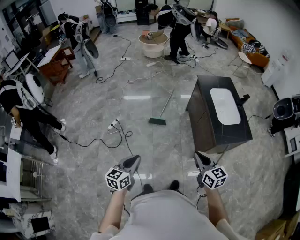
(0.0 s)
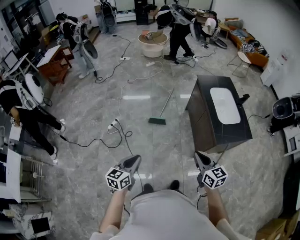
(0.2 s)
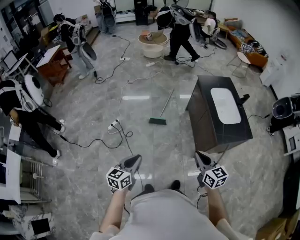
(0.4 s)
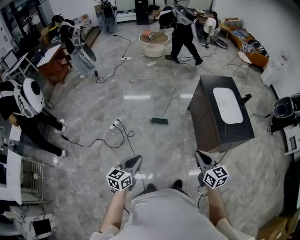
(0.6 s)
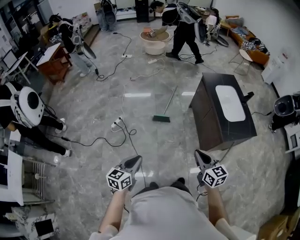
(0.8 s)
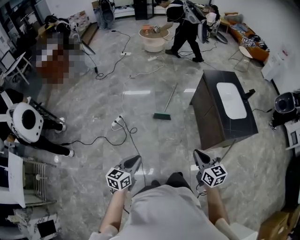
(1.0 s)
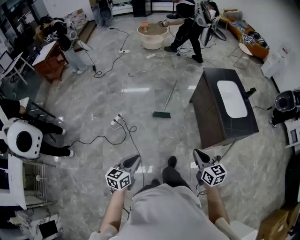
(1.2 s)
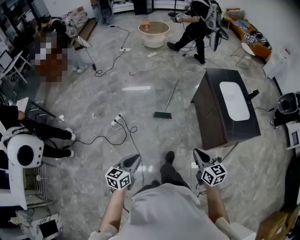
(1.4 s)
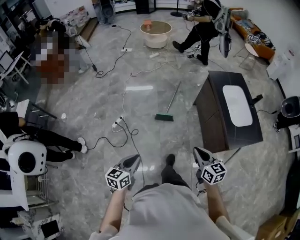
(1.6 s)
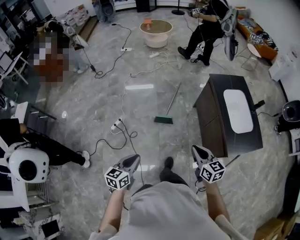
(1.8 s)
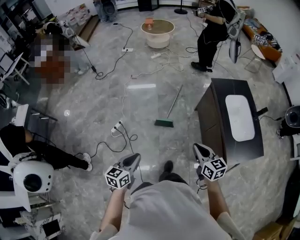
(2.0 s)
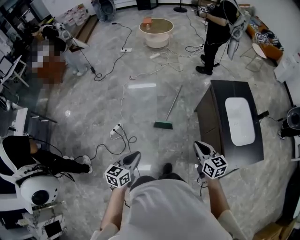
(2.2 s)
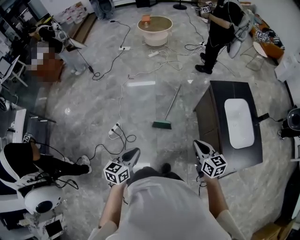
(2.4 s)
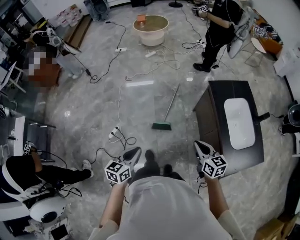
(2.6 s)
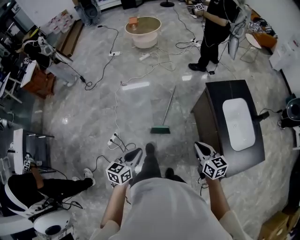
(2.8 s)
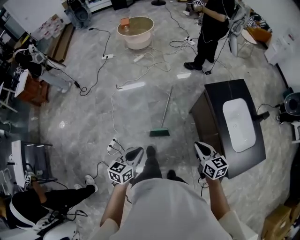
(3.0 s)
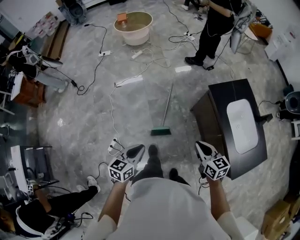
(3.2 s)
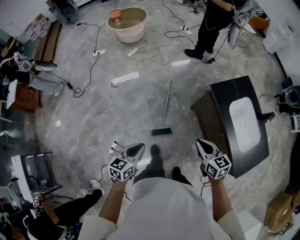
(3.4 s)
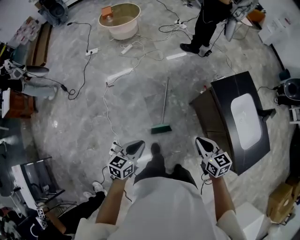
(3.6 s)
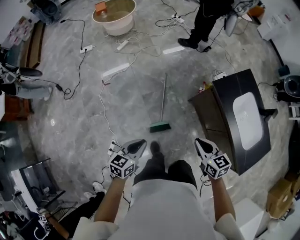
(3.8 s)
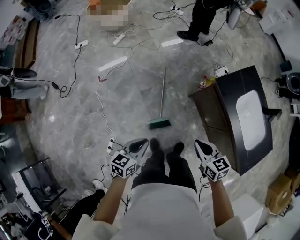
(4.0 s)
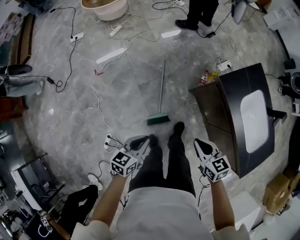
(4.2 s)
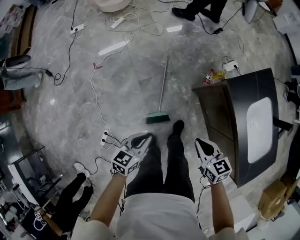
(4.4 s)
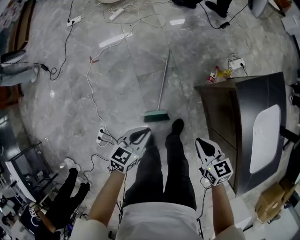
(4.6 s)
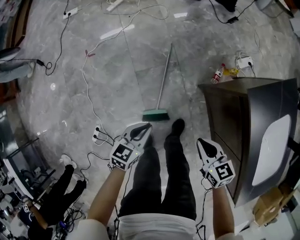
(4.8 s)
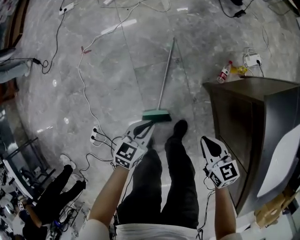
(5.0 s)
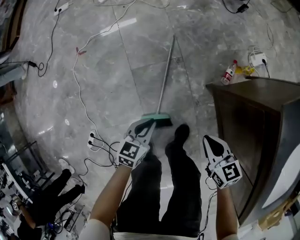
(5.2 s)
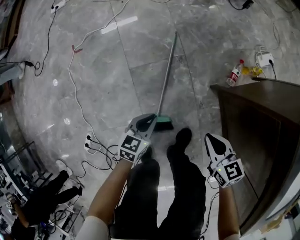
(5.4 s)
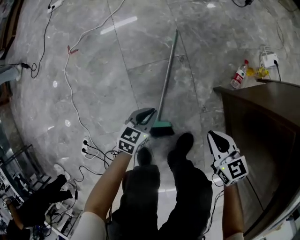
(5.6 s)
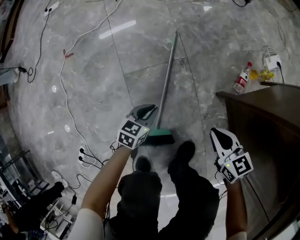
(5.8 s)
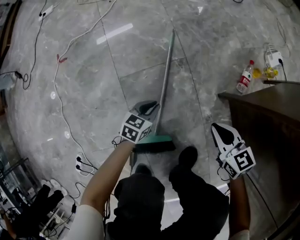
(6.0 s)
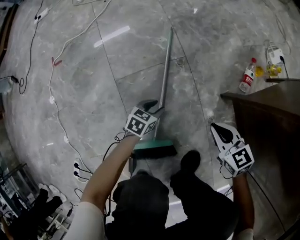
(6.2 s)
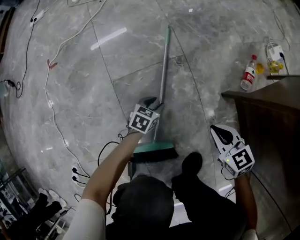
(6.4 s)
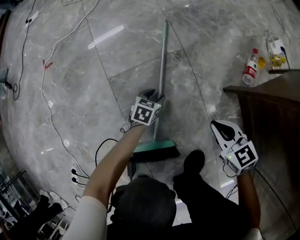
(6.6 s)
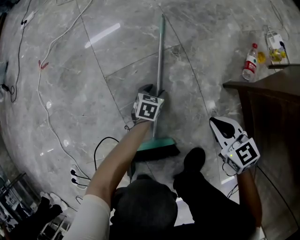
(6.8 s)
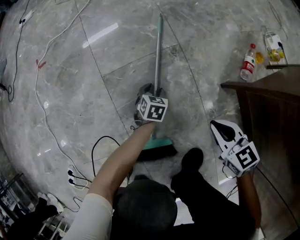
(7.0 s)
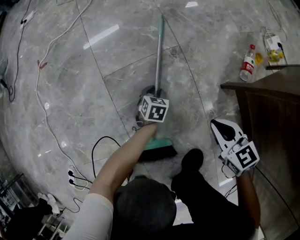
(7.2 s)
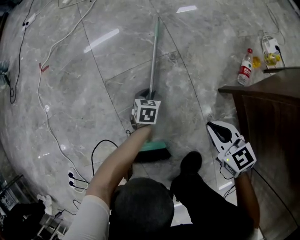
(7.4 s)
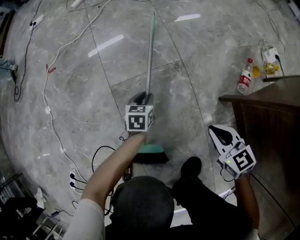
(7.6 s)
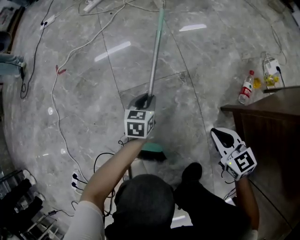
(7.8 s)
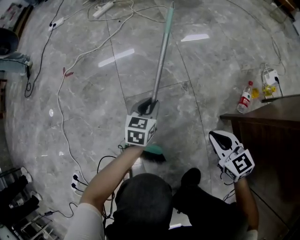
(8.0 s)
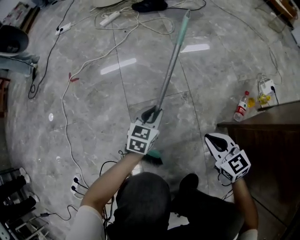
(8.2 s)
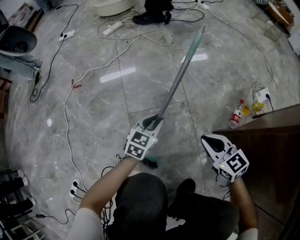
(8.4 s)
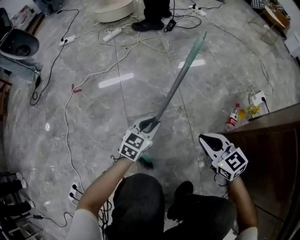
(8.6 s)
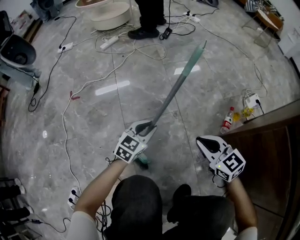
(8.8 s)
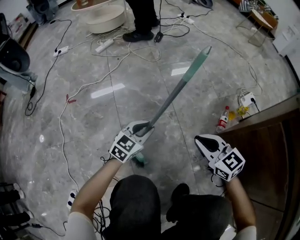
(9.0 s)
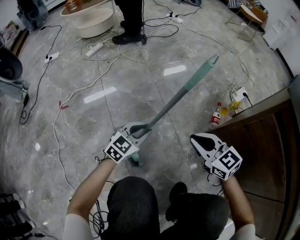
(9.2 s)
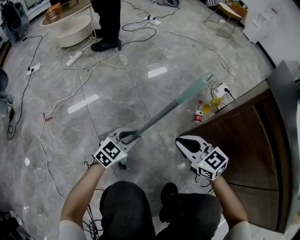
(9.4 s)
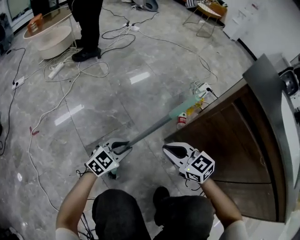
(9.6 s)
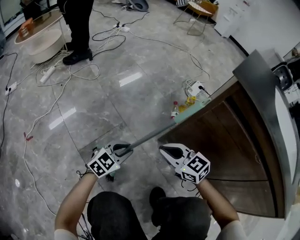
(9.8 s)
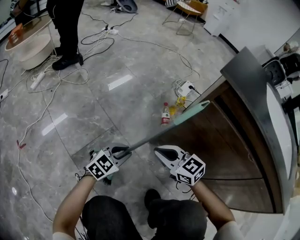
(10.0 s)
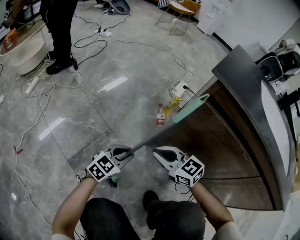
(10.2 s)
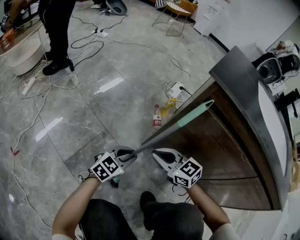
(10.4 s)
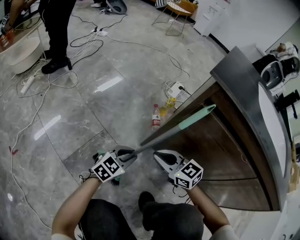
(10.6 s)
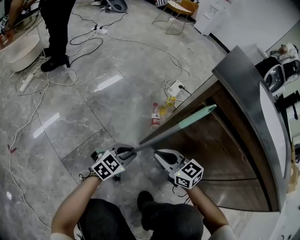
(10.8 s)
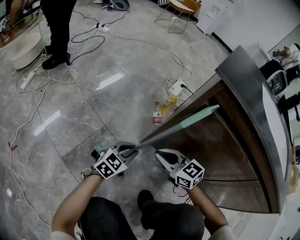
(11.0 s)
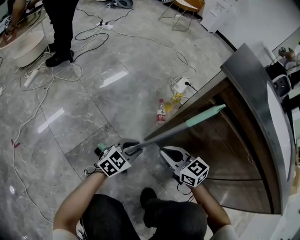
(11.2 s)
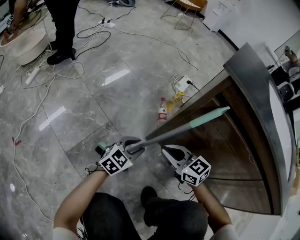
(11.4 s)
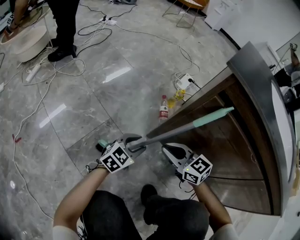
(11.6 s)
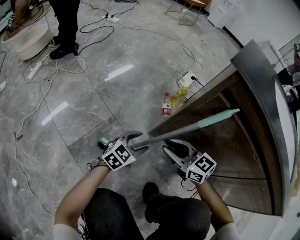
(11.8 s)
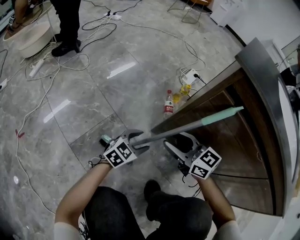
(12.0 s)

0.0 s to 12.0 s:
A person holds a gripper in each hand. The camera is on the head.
0.0 to 1.6 s: The left gripper goes some 15 cm to the left and forward. The right gripper moves forward, to the left and downward, approximately 15 cm.
1.6 to 3.0 s: Both grippers travel together forward, approximately 40 cm.
3.0 to 4.4 s: Both grippers travel together forward and downward, some 35 cm.
4.4 to 6.0 s: The two grippers go roughly 60 cm downward.
6.0 to 7.6 s: The left gripper heads downward and forward, covering approximately 10 cm, changes its angle by roughly 20 degrees, and opens, then closes again. The right gripper heads downward, covering some 5 cm.
7.6 to 9.0 s: Both grippers travel together upward, approximately 25 cm. The left gripper turns by approximately 40 degrees.
9.0 to 10.4 s: The right gripper shifts by roughly 15 cm, and rotates roughly 20 degrees. The left gripper changes place by approximately 25 cm, and swivels about 40 degrees.
10.4 to 12.0 s: The right gripper opens up, while the left gripper opens its fingers.

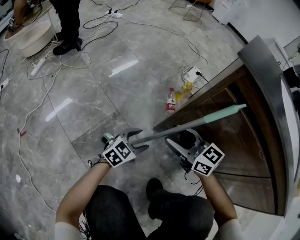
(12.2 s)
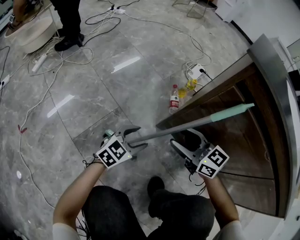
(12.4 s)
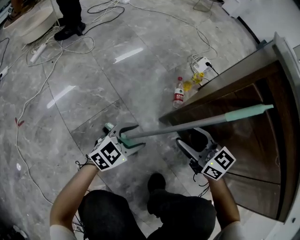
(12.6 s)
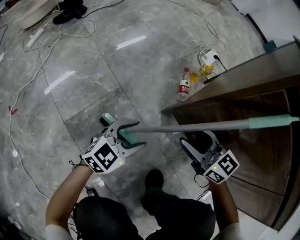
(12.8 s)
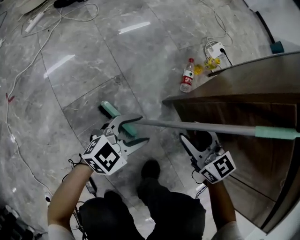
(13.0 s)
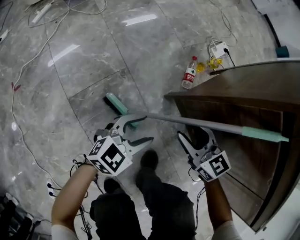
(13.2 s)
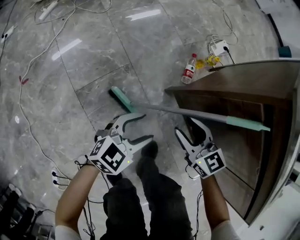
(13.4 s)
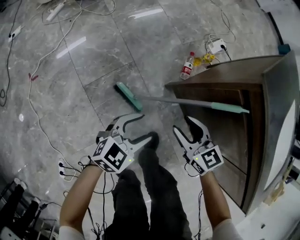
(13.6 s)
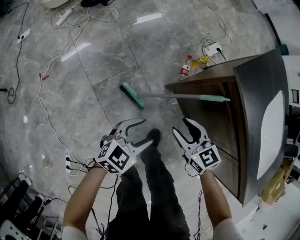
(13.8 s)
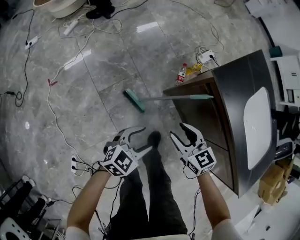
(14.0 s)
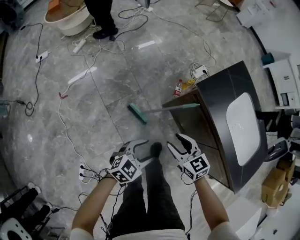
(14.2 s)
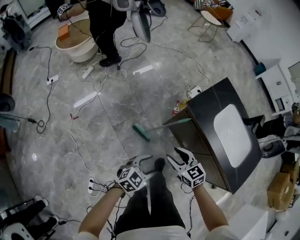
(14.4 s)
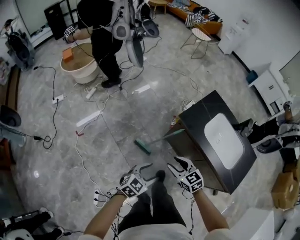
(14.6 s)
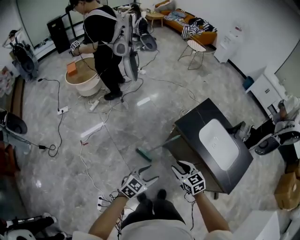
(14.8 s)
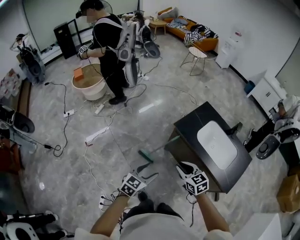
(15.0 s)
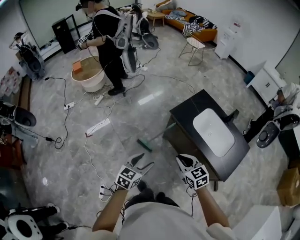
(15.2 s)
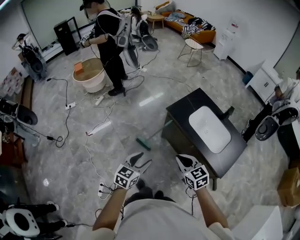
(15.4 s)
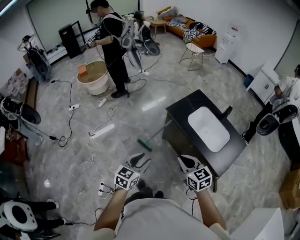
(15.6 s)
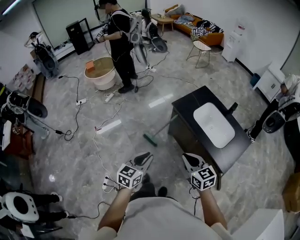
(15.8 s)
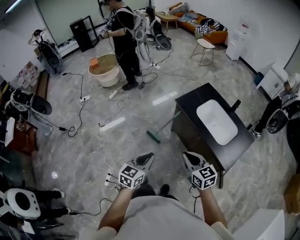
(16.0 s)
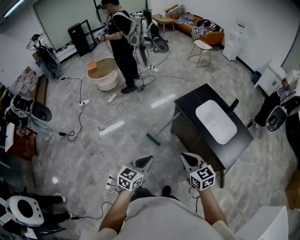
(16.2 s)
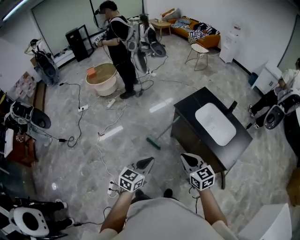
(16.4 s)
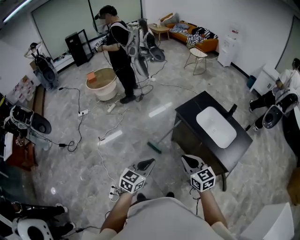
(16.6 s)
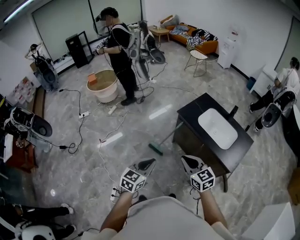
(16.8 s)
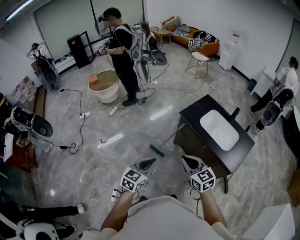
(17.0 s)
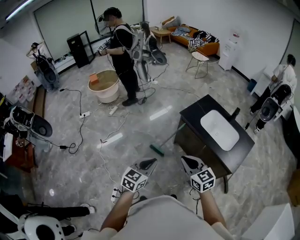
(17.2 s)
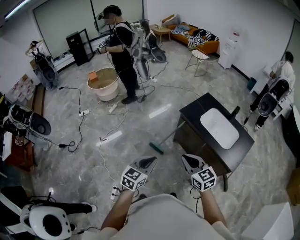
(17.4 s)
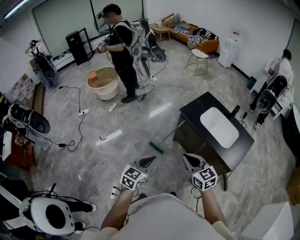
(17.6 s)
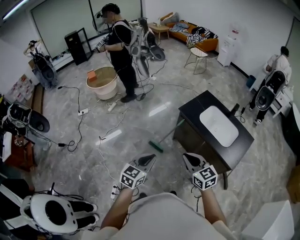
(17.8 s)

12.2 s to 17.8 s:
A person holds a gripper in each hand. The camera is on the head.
12.2 to 13.6 s: The left gripper goes some 20 cm upward and backward. Meanwhile the right gripper travels backward and upward by some 10 cm.
13.6 to 15.0 s: The right gripper travels upward and backward by roughly 70 cm, and closes, while the left gripper shifts some 60 cm upward.
15.0 to 16.4 s: Both grippers travel together backward and upward, about 25 cm. The left gripper closes up.
16.4 to 17.8 s: Both grippers move to the left, approximately 5 cm.

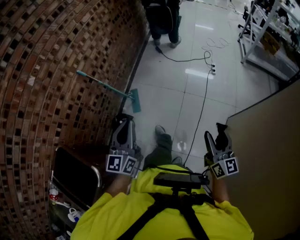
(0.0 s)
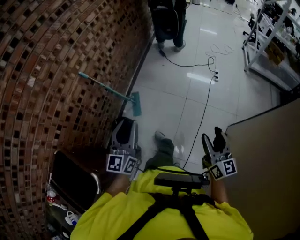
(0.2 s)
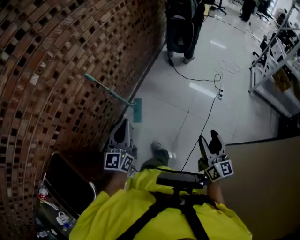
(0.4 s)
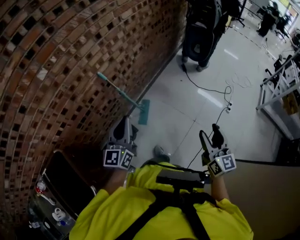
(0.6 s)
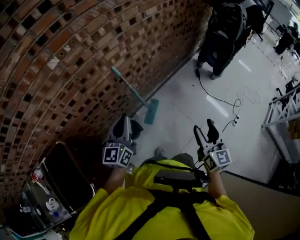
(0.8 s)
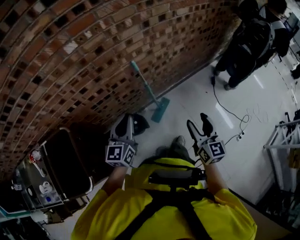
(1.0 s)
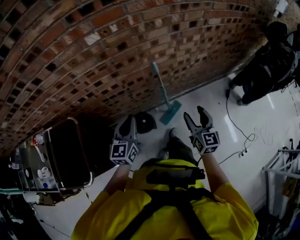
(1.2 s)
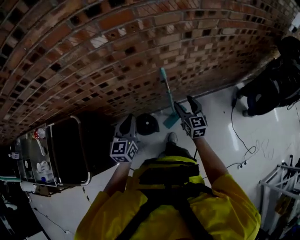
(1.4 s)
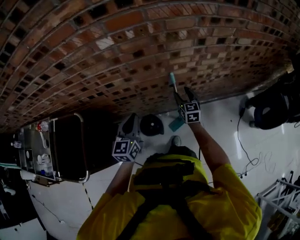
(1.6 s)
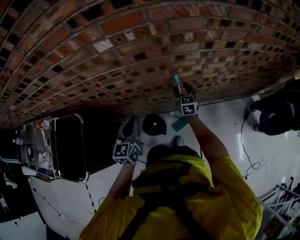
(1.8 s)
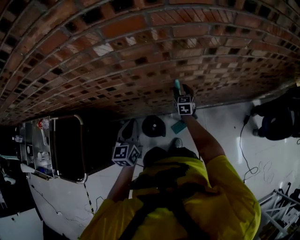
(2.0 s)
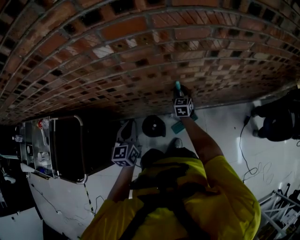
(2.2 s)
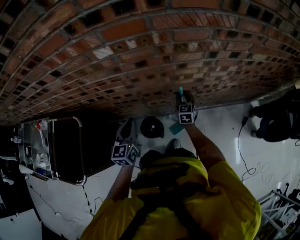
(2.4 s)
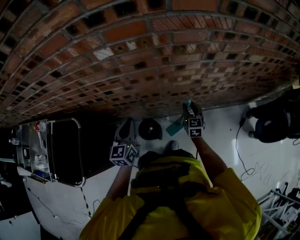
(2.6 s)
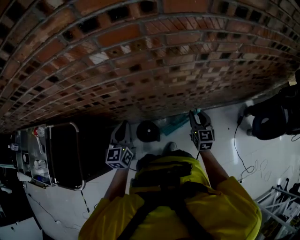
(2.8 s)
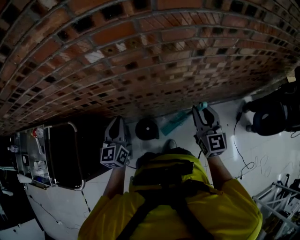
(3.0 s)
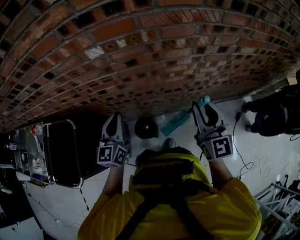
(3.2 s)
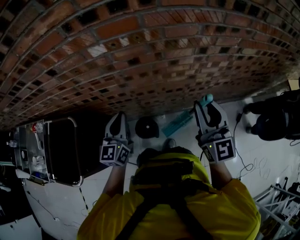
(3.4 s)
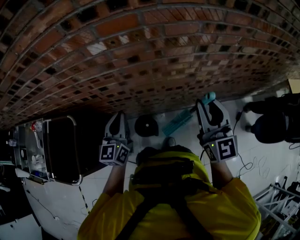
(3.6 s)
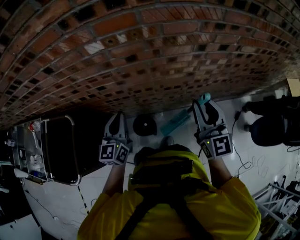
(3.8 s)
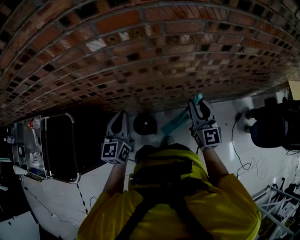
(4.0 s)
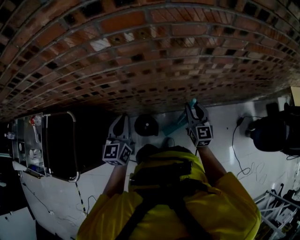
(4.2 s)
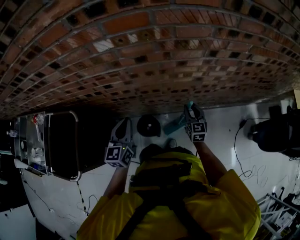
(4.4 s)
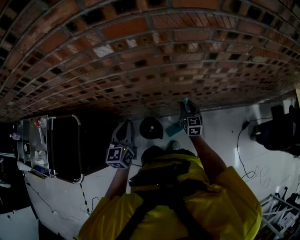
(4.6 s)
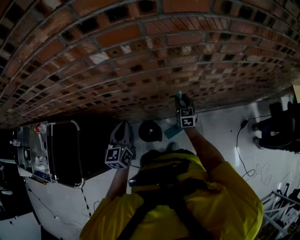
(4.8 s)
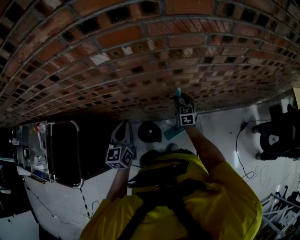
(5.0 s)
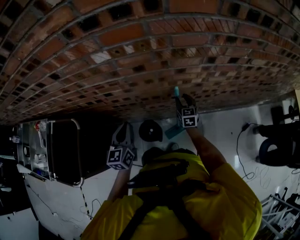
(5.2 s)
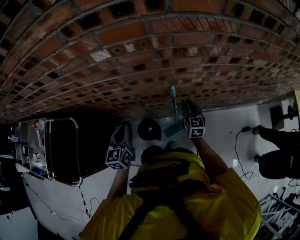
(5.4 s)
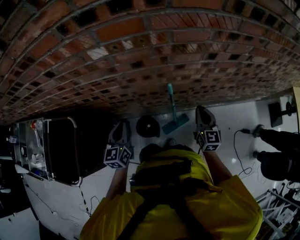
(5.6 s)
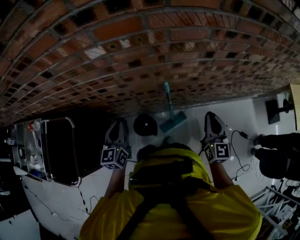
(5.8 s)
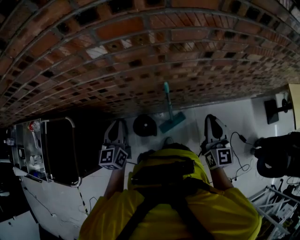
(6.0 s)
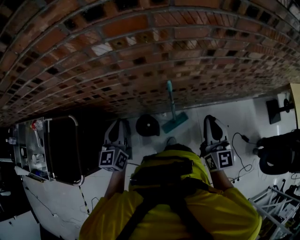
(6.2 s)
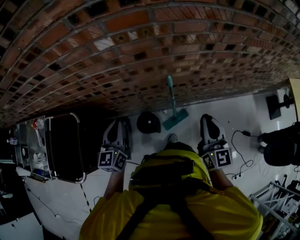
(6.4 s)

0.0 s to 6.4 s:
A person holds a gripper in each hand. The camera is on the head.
0.0 to 1.6 s: The two grippers travel together, some 70 cm. The right gripper turns by about 70 degrees. Meanwhile the left gripper rotates roughly 60 degrees, and opens and closes again.
1.6 to 3.2 s: The right gripper heads upward, covering approximately 25 cm, changes its angle by approximately 20 degrees, and closes. The left gripper shifts roughly 5 cm upward.
3.2 to 4.8 s: The left gripper travels downward by approximately 5 cm, while the right gripper goes about 35 cm downward and forward, and turns by some 30 degrees.
4.8 to 6.4 s: The left gripper moves roughly 5 cm, while the right gripper moves upward and backward, approximately 30 cm, rotates some 20 degrees, and closes its fingers.
